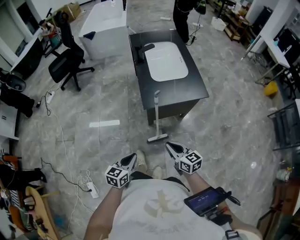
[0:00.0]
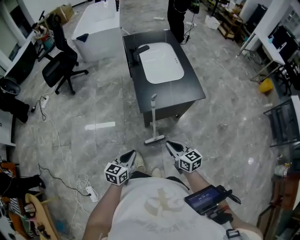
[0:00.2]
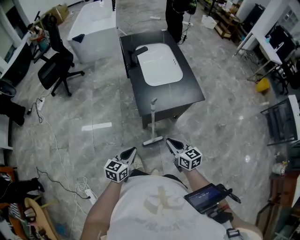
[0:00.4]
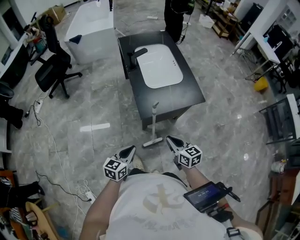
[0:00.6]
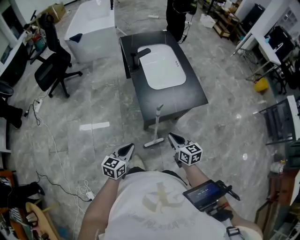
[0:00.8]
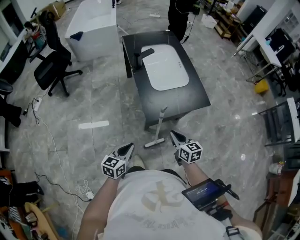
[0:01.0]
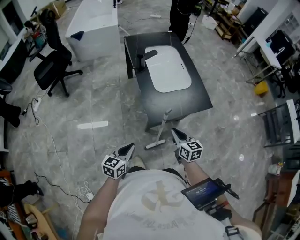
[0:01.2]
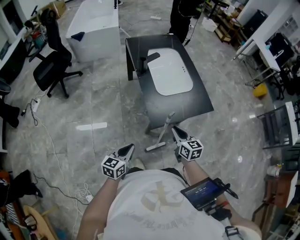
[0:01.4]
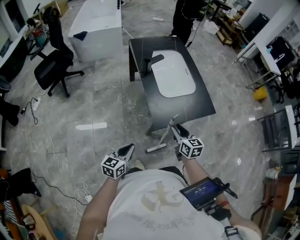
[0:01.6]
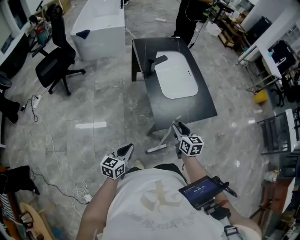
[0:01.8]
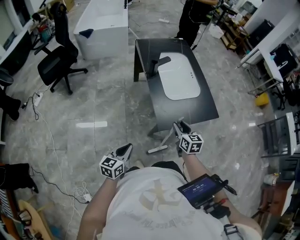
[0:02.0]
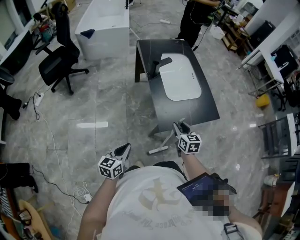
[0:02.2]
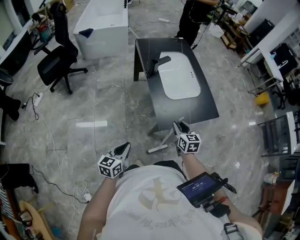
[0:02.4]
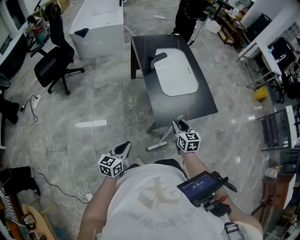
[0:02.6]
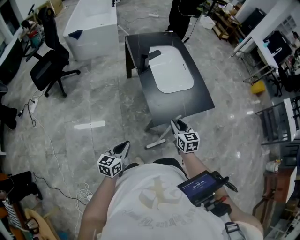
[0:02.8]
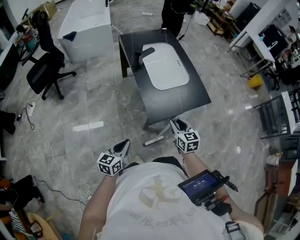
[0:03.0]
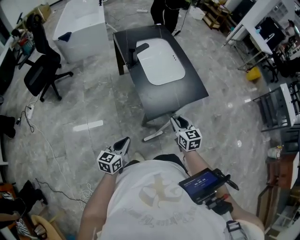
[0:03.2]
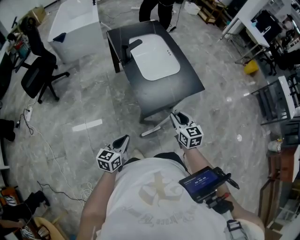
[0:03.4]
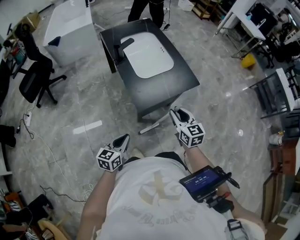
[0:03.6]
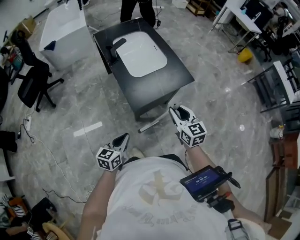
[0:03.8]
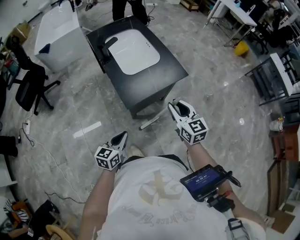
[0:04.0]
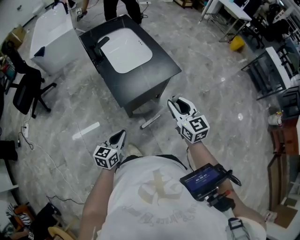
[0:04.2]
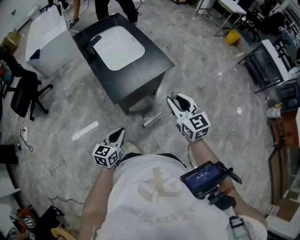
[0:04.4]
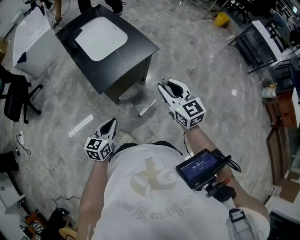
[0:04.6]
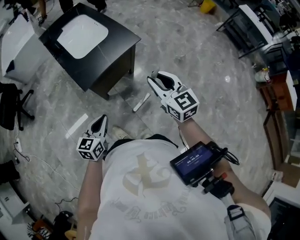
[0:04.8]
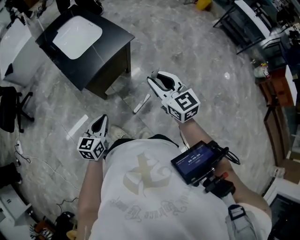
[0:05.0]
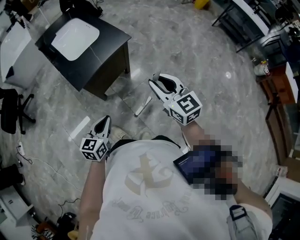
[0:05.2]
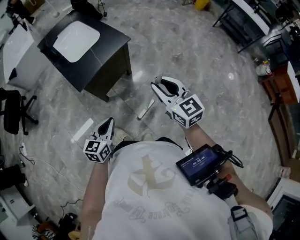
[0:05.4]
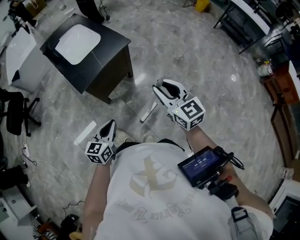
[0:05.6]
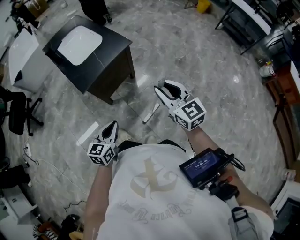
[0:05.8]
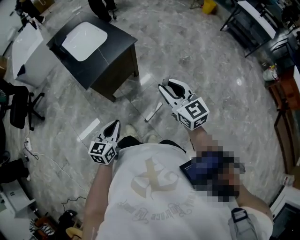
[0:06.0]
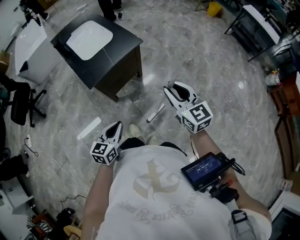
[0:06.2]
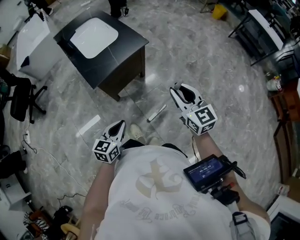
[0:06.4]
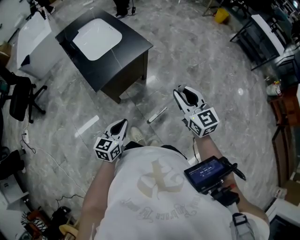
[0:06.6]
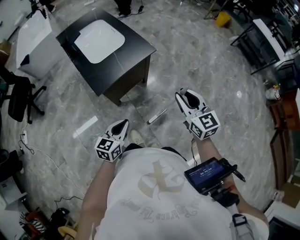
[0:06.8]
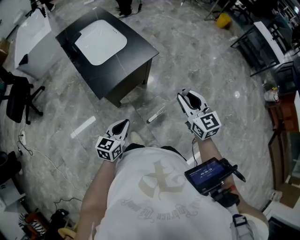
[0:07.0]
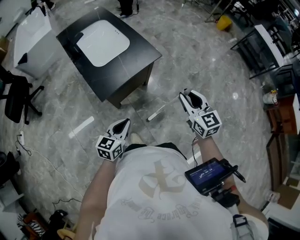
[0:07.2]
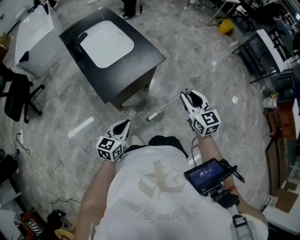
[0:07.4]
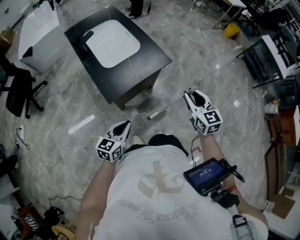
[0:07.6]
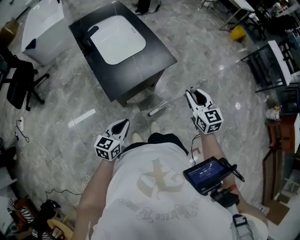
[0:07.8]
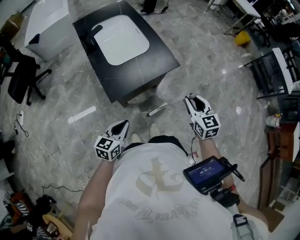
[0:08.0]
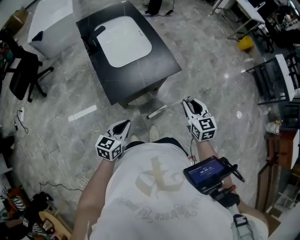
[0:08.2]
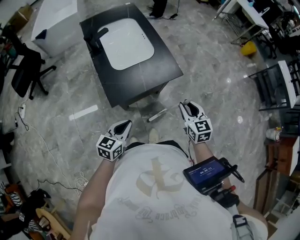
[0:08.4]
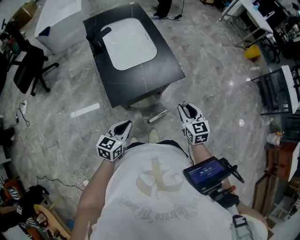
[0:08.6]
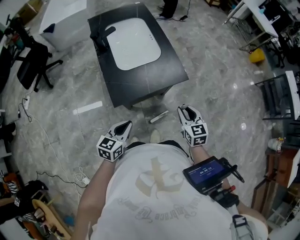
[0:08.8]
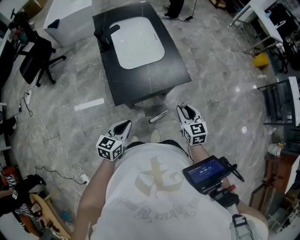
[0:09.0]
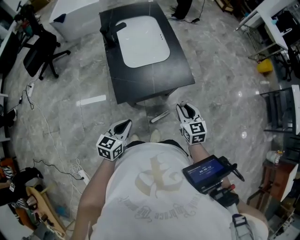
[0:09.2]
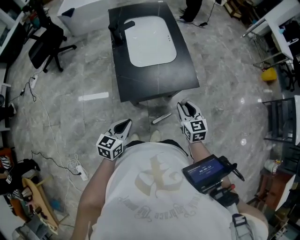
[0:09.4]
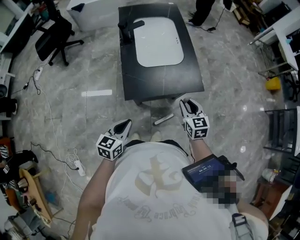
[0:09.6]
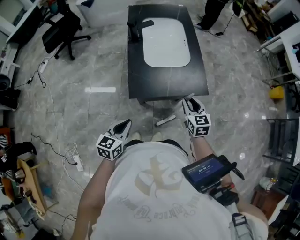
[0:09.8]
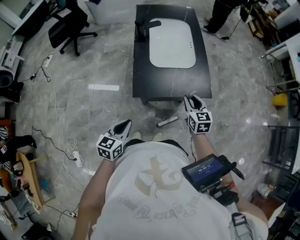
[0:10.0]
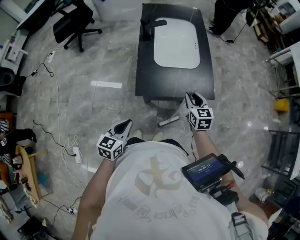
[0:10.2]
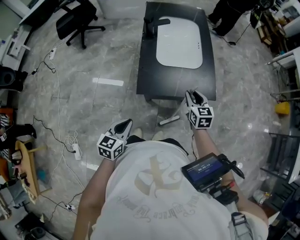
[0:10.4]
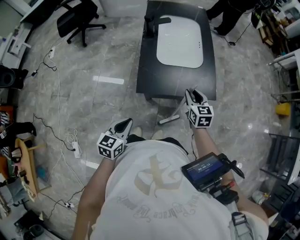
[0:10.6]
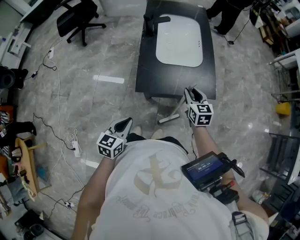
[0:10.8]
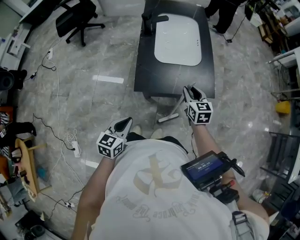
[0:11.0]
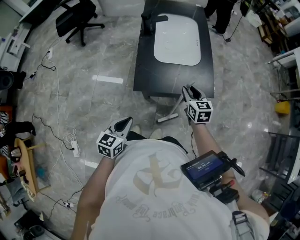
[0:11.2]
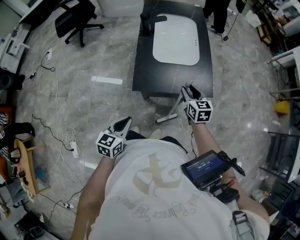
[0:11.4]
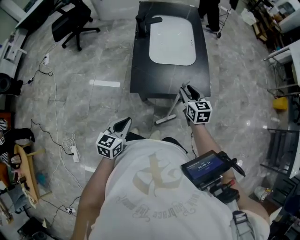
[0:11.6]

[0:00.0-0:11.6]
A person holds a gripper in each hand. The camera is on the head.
0:00.0 to 0:01.4: The right gripper travels forward by roughly 20 cm, and turns by about 20 degrees. Meanwhile the left gripper moves forward and to the left, about 20 cm.
0:02.8 to 0:04.4: The right gripper moves to the right, upward and backward, roughly 25 cm; the left gripper is displaced to the right by roughly 15 cm.
0:04.4 to 0:05.8: The grippers both shift to the right and backward by some 15 cm.
0:05.8 to 0:07.2: The right gripper moves forward, some 10 cm. Meanwhile the left gripper heads forward and to the left, covering roughly 15 cm.
0:07.2 to 0:08.8: The right gripper shifts approximately 15 cm downward, forward and to the left. The left gripper shifts about 5 cm forward.
0:08.8 to 0:10.2: The left gripper heads to the left, covering approximately 5 cm, and turns by some 20 degrees, while the right gripper is displaced forward and to the left by approximately 15 cm.
0:10.2 to 0:11.6: The grippers stay close to where they were, moving slightly.

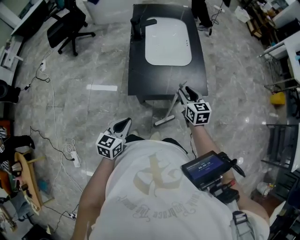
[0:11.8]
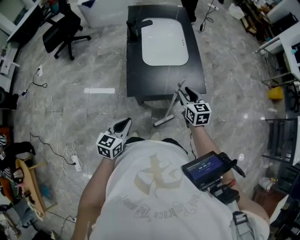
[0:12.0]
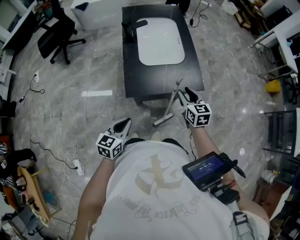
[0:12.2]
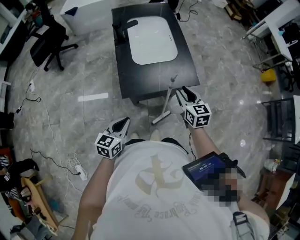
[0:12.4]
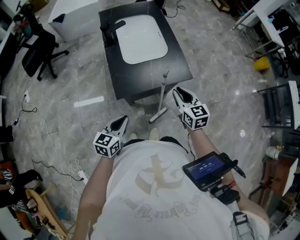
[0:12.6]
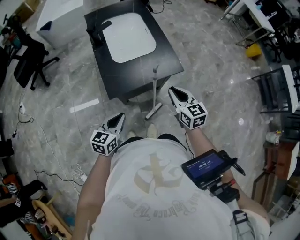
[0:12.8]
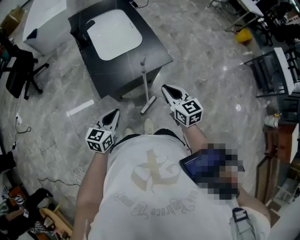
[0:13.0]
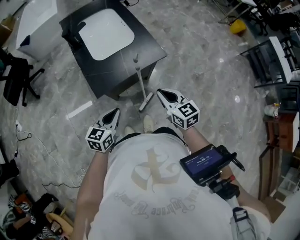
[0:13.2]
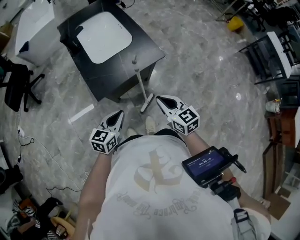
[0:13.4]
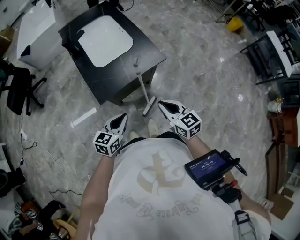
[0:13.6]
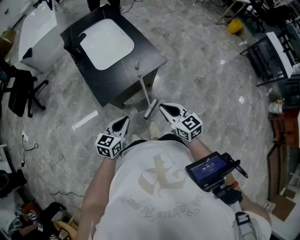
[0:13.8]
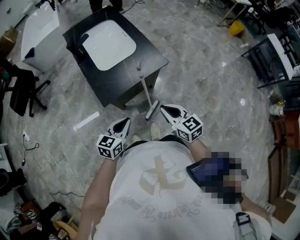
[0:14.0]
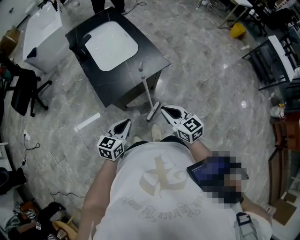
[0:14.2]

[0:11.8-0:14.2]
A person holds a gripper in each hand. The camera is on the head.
0:11.8 to 0:13.0: The left gripper turns by about 20 degrees, while the right gripper heads backward and upward, covering roughly 15 cm, and closes its fingers.
0:13.0 to 0:14.2: The right gripper shifts approximately 10 cm backward.

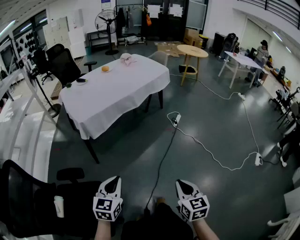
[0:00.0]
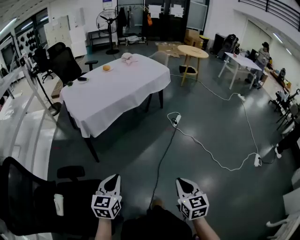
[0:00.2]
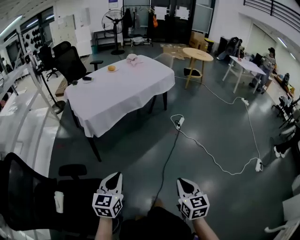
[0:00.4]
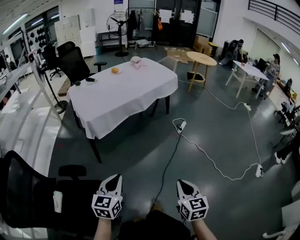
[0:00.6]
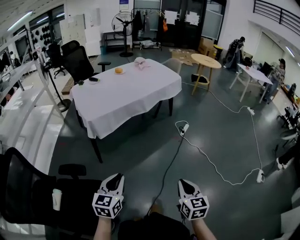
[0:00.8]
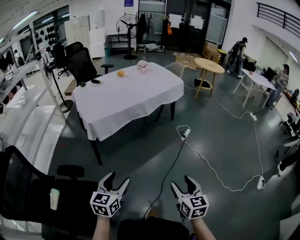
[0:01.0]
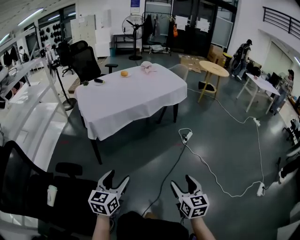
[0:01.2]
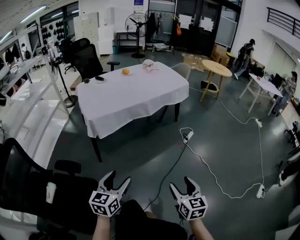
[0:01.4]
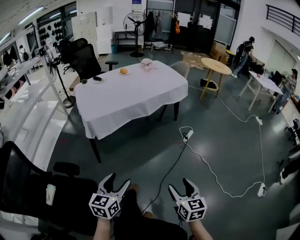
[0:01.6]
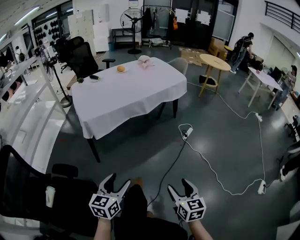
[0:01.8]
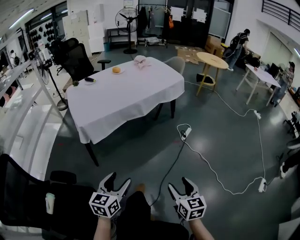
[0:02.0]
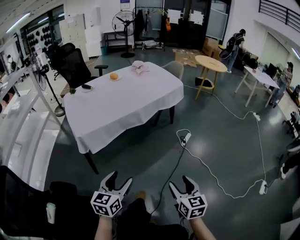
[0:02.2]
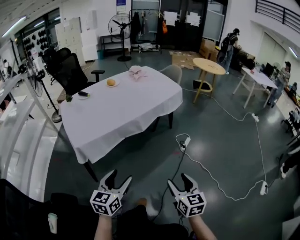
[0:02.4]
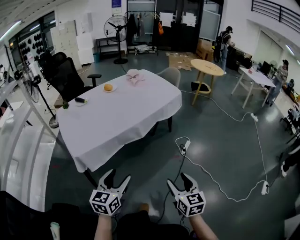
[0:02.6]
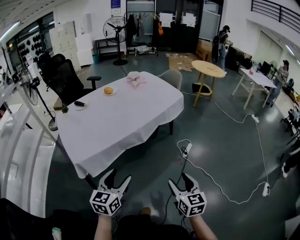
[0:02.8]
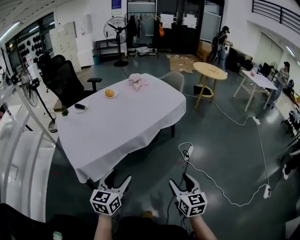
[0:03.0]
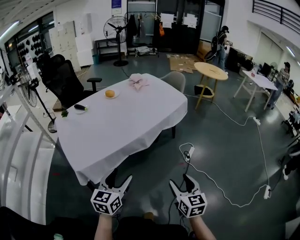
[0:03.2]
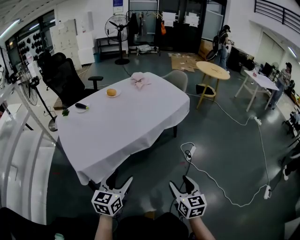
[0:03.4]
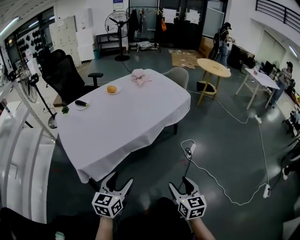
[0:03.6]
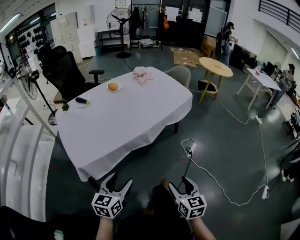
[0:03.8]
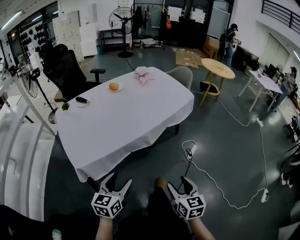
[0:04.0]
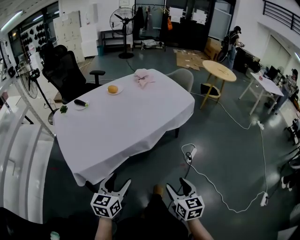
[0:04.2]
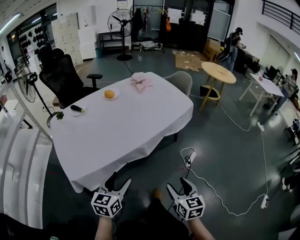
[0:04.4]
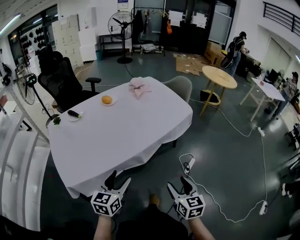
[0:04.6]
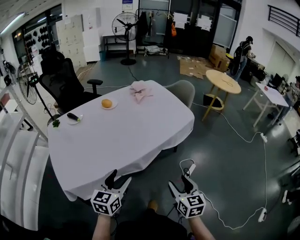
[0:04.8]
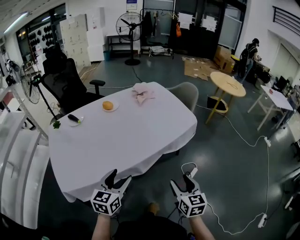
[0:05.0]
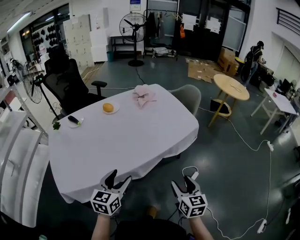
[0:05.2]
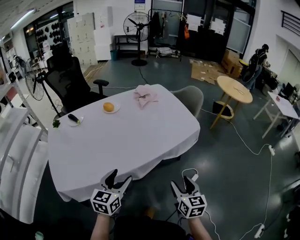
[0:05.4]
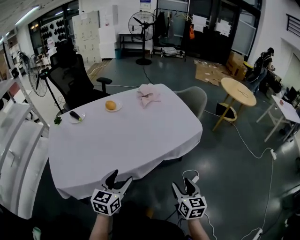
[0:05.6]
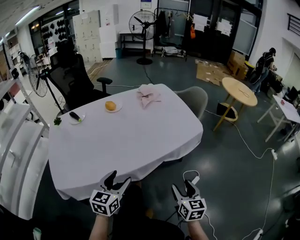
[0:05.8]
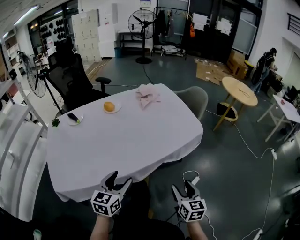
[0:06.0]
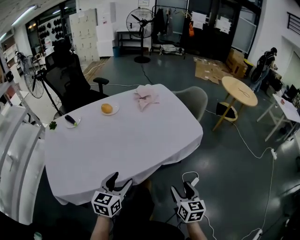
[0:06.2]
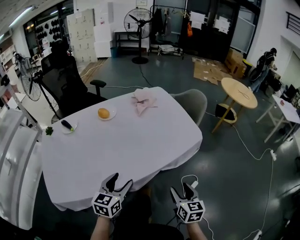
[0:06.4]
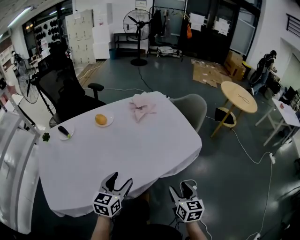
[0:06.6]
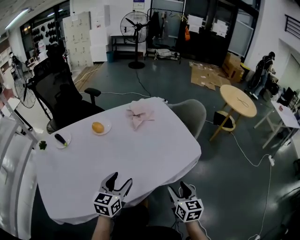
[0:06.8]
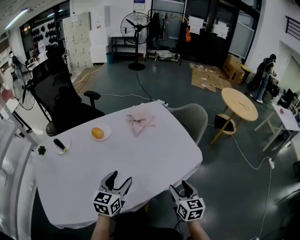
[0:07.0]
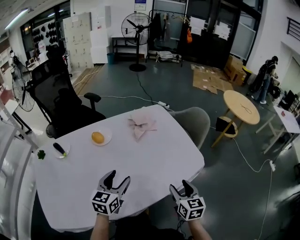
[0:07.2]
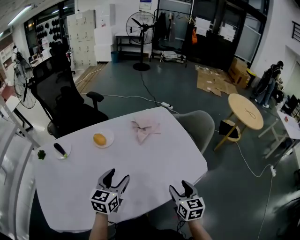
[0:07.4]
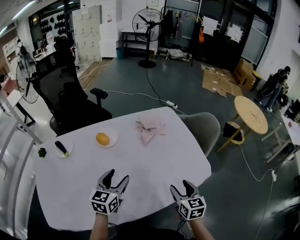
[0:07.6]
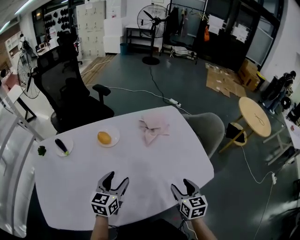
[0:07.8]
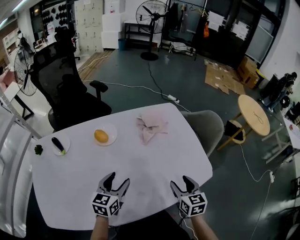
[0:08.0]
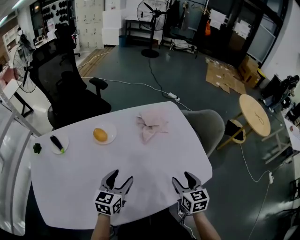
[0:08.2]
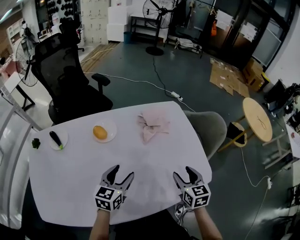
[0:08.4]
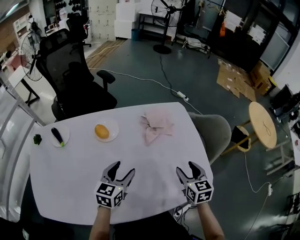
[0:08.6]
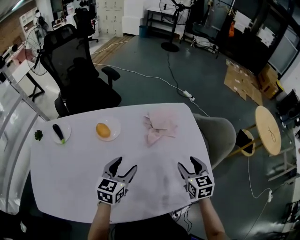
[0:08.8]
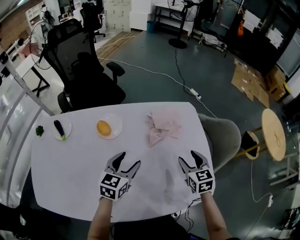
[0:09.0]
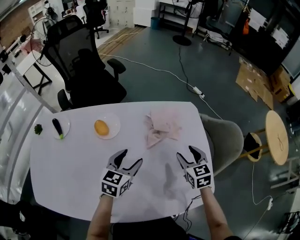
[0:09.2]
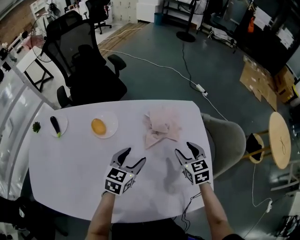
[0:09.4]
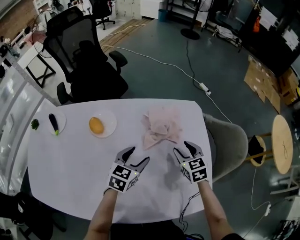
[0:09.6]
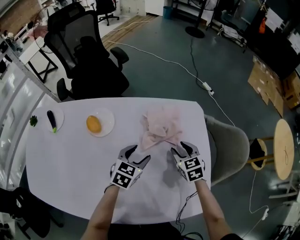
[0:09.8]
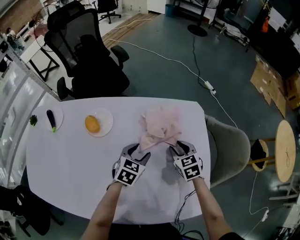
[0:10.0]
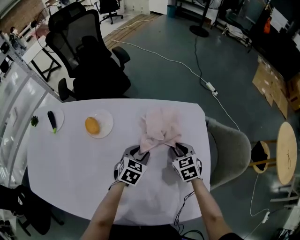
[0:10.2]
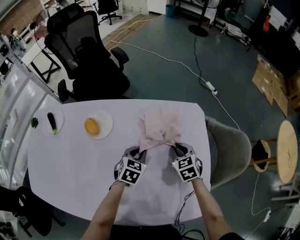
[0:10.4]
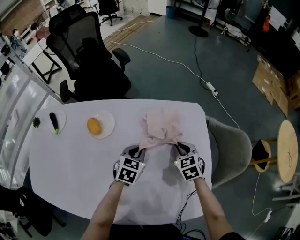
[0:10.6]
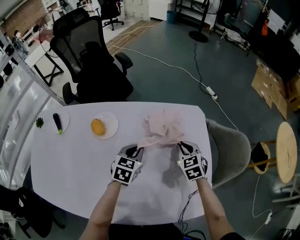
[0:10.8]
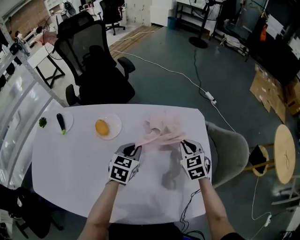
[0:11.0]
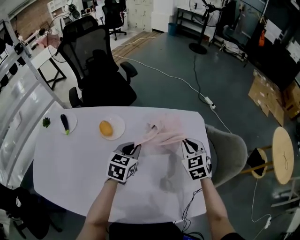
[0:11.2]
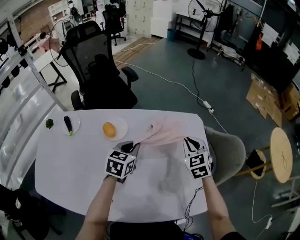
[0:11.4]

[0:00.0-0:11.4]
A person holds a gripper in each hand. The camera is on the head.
0:00.0 to 0:01.4: The left gripper moves forward, approximately 5 cm, and opens up; the right gripper moves forward, some 10 cm, and opens its fingers.
0:01.4 to 0:02.8: Both grippers move forward, approximately 30 cm.
0:02.8 to 0:04.2: Both grippers travel together forward, some 10 cm.
0:04.2 to 0:05.6: Both grippers move forward and to the right, approximately 25 cm.
0:05.6 to 0:07.2: Both grippers travel together forward, approximately 25 cm.
0:07.2 to 0:08.6: The right gripper shifts some 20 cm forward; the left gripper shifts approximately 10 cm forward.
0:08.6 to 0:10.0: The left gripper shifts about 25 cm forward, to the right and downward, and swivels roughly 20 degrees, while the right gripper travels forward and downward by some 25 cm, and rotates roughly 30 degrees.
0:10.0 to 0:11.4: The left gripper heads upward and to the left, covering some 15 cm, and closes, while the right gripper moves upward, approximately 15 cm, rotates roughly 20 degrees, and closes.
